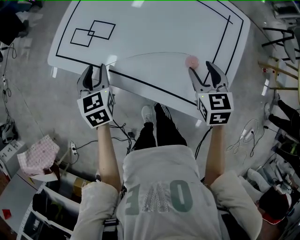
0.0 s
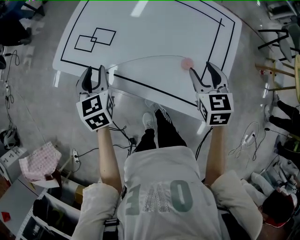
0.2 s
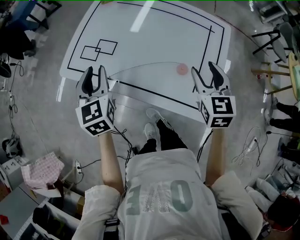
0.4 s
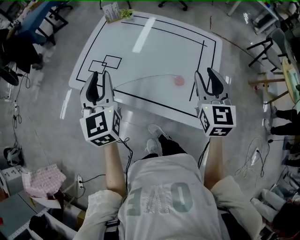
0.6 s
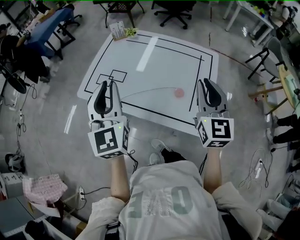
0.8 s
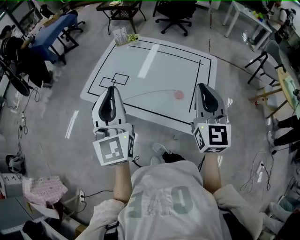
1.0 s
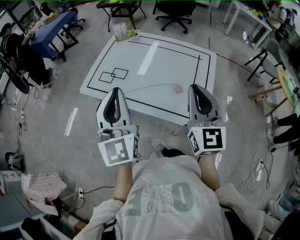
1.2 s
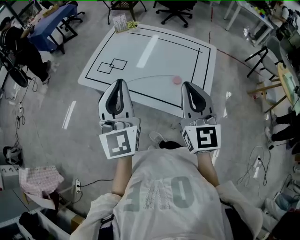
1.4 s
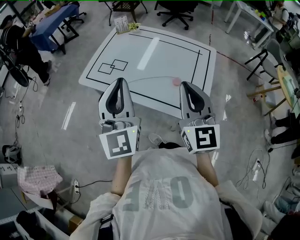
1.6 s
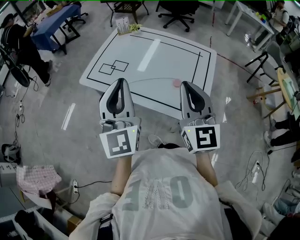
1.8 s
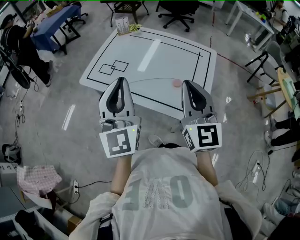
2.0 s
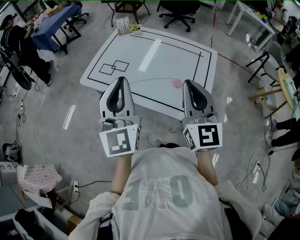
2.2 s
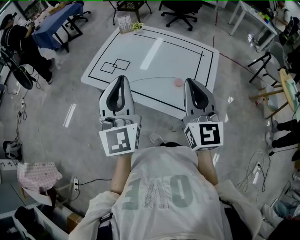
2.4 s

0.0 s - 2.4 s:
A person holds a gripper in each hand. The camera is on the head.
0.0 s - 1.2 s: The two grippers go some 35 cm upward and backward. The right gripper tips its fingers upward by roughly 40 degrees, and closes up. The left gripper points its fingers roughly 50 degrees further upward.
1.2 s - 2.4 s: The grippers make only small movements.

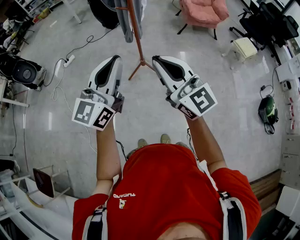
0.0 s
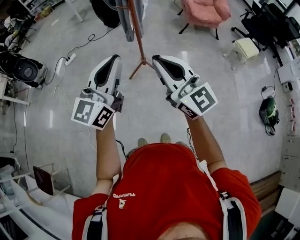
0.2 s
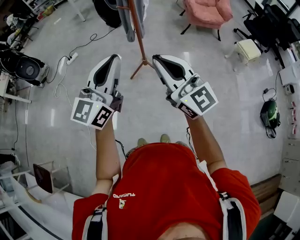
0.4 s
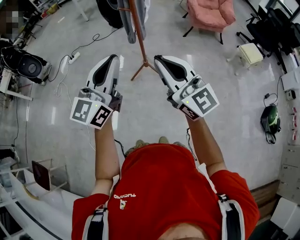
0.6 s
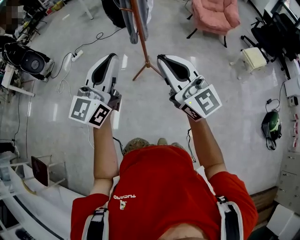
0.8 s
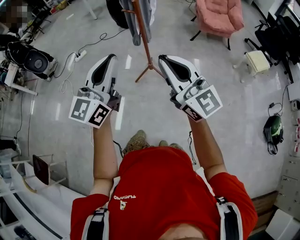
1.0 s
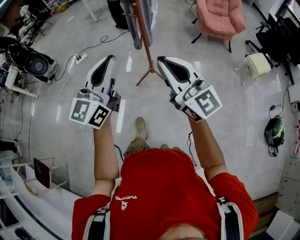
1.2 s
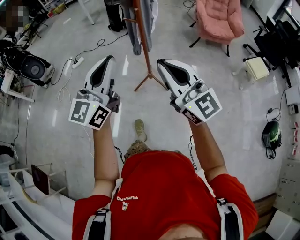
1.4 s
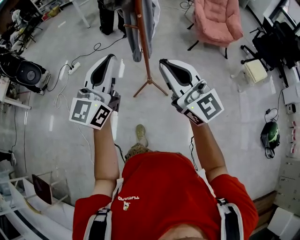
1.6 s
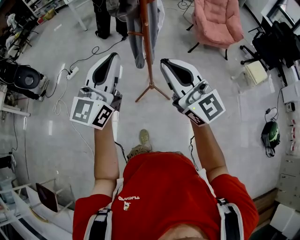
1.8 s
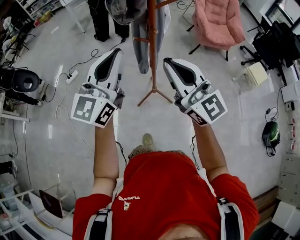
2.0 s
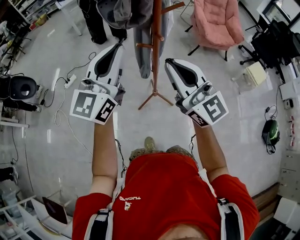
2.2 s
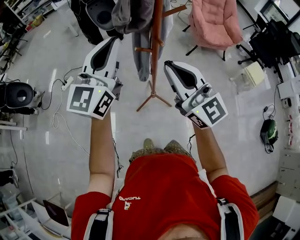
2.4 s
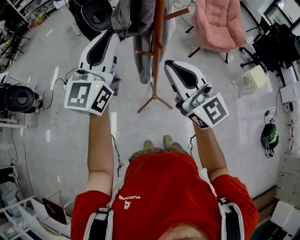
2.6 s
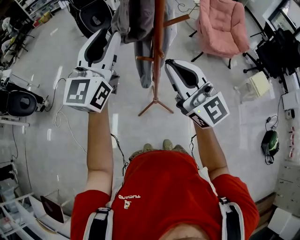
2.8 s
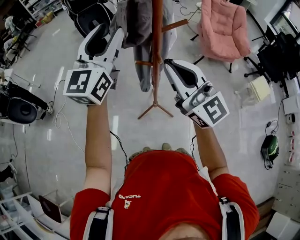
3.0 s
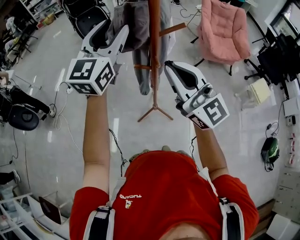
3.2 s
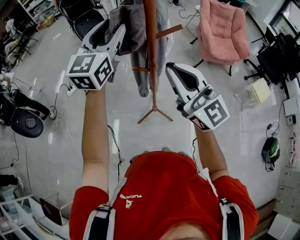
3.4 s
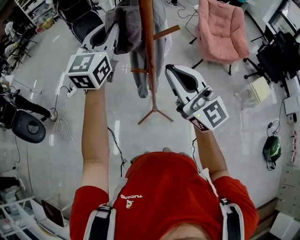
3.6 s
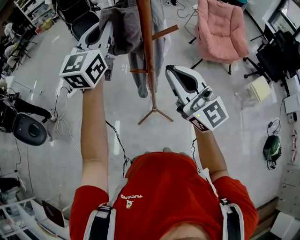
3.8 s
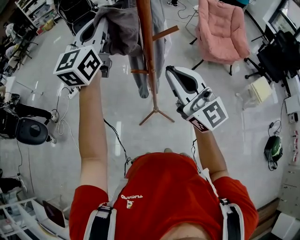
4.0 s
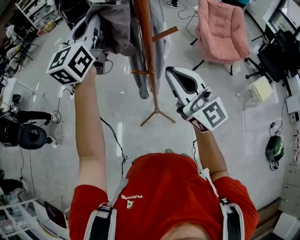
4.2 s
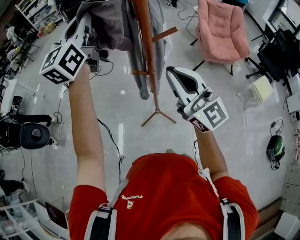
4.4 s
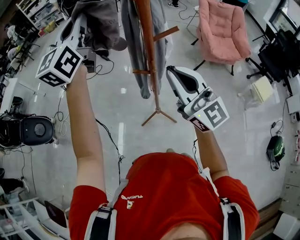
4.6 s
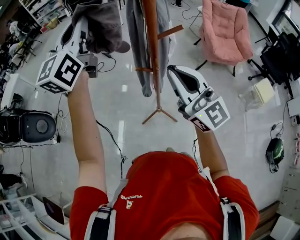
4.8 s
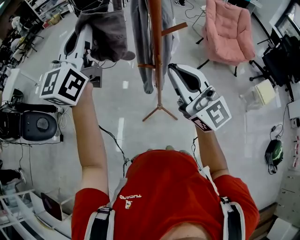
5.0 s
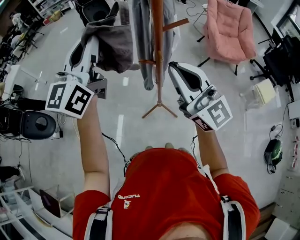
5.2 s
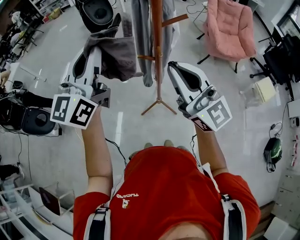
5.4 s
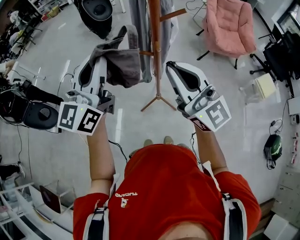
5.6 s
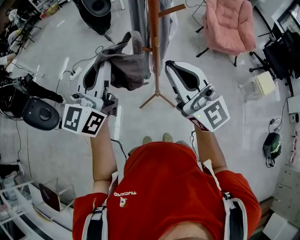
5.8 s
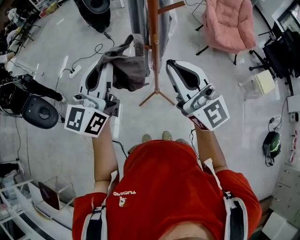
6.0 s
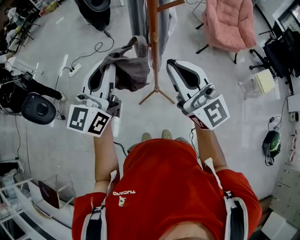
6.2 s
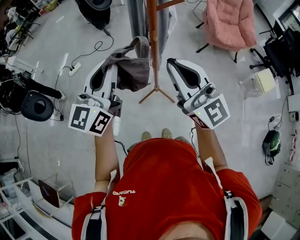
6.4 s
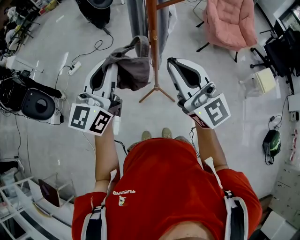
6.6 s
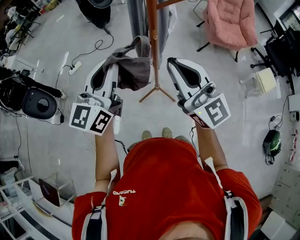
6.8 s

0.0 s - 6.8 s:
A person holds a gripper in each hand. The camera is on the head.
0.0 s - 1.4 s: The two grippers go about 10 cm forward.
1.4 s - 2.8 s: Both grippers travel together forward, approximately 30 cm. The left gripper opens up.
2.8 s - 4.0 s: The left gripper goes some 10 cm forward, and closes up.
4.0 s - 5.4 s: The left gripper is displaced backward and to the left by about 15 cm.
5.4 s - 6.8 s: The left gripper travels downward and backward by about 10 cm.

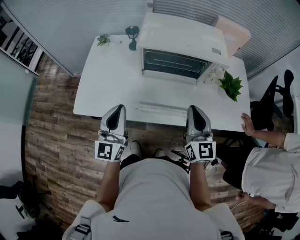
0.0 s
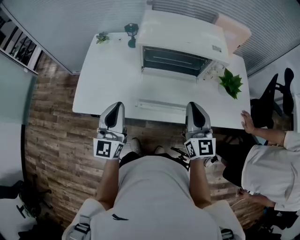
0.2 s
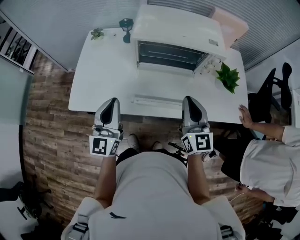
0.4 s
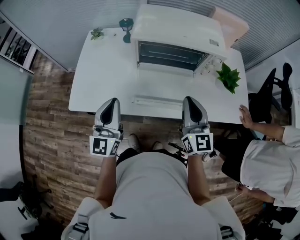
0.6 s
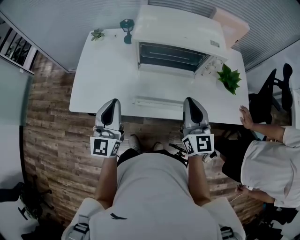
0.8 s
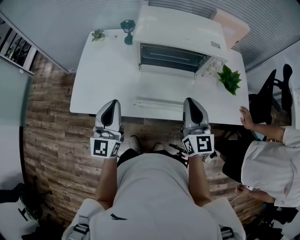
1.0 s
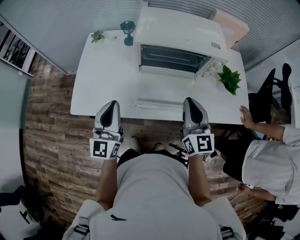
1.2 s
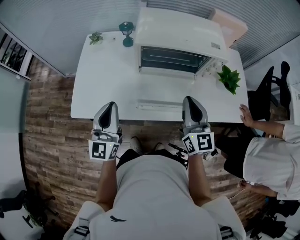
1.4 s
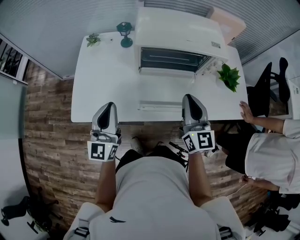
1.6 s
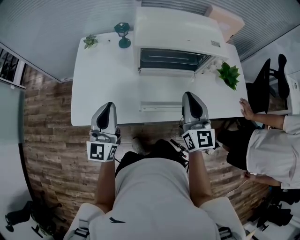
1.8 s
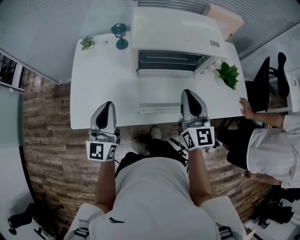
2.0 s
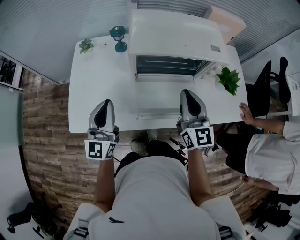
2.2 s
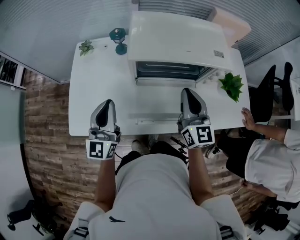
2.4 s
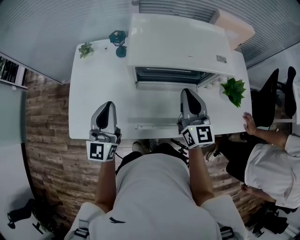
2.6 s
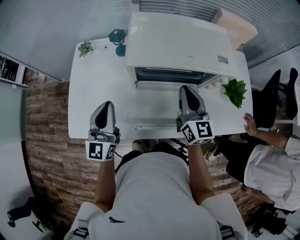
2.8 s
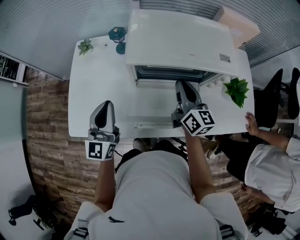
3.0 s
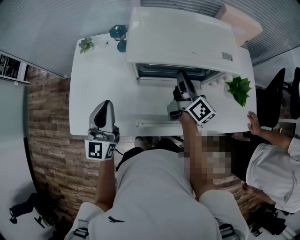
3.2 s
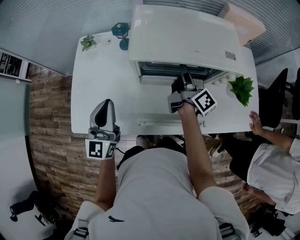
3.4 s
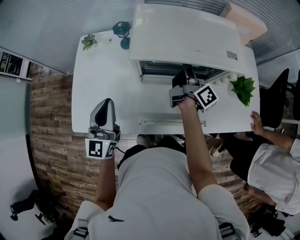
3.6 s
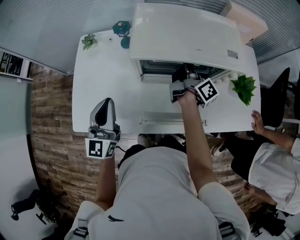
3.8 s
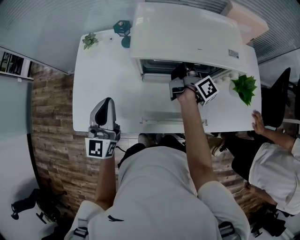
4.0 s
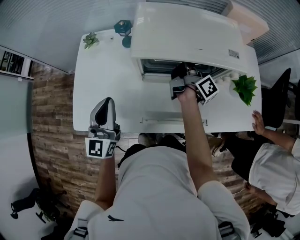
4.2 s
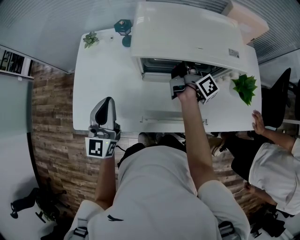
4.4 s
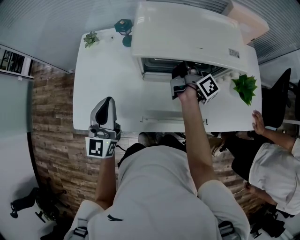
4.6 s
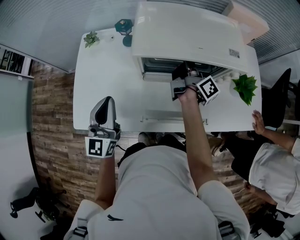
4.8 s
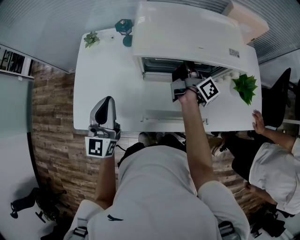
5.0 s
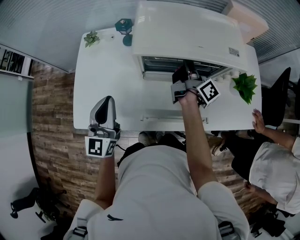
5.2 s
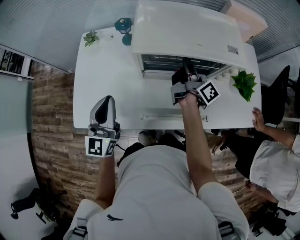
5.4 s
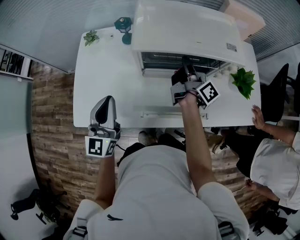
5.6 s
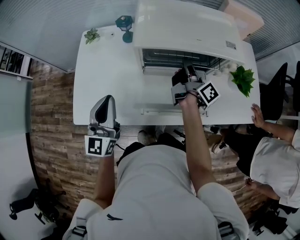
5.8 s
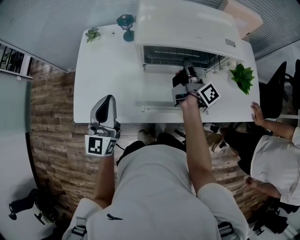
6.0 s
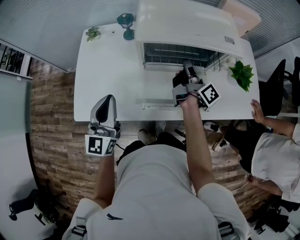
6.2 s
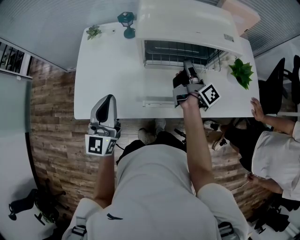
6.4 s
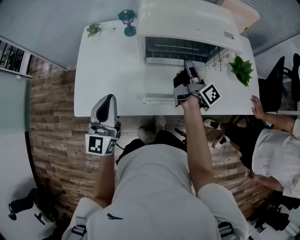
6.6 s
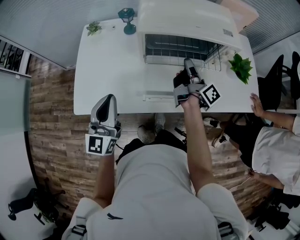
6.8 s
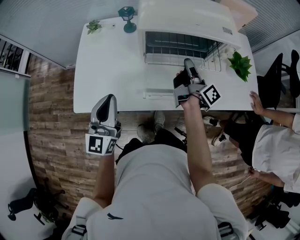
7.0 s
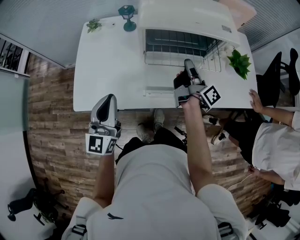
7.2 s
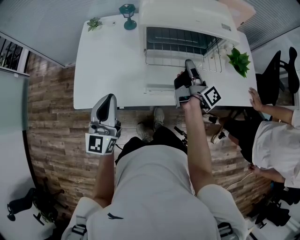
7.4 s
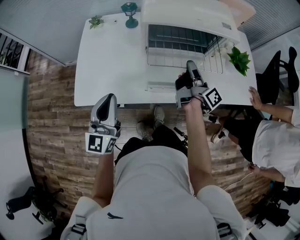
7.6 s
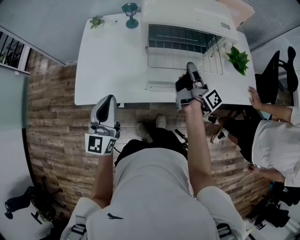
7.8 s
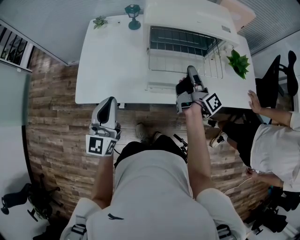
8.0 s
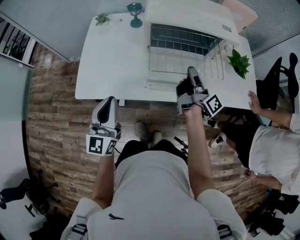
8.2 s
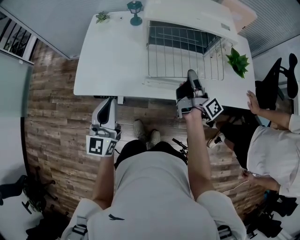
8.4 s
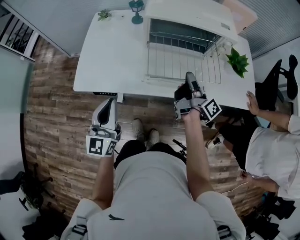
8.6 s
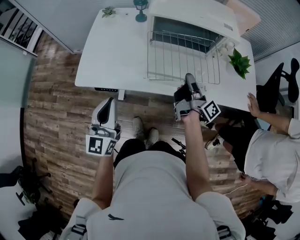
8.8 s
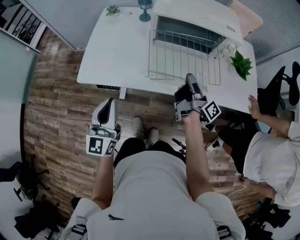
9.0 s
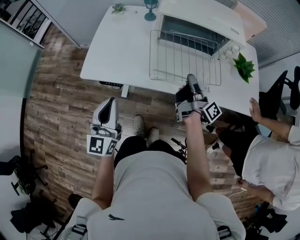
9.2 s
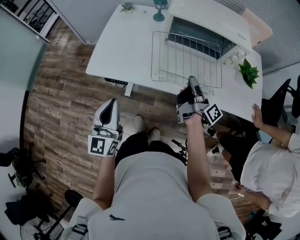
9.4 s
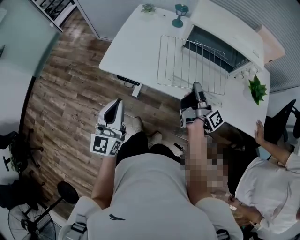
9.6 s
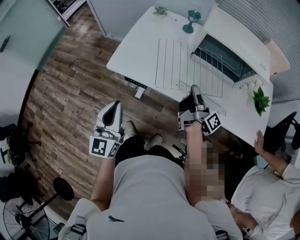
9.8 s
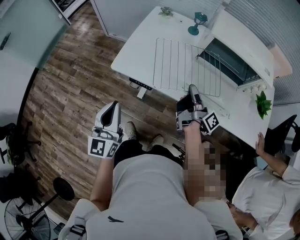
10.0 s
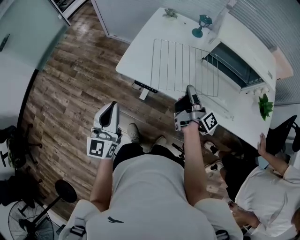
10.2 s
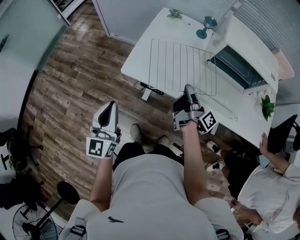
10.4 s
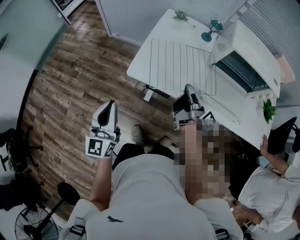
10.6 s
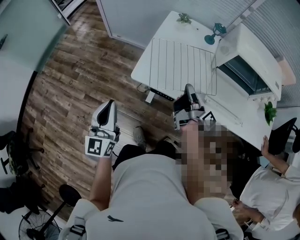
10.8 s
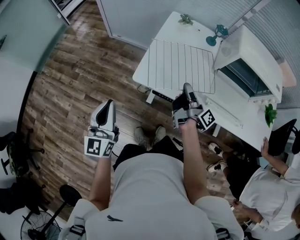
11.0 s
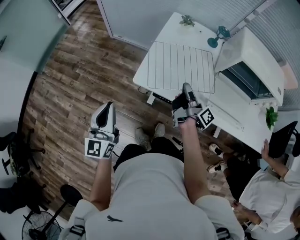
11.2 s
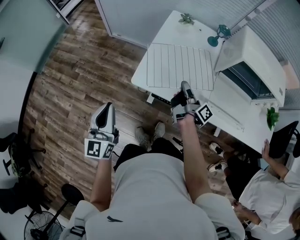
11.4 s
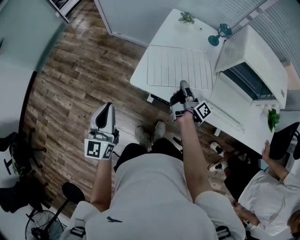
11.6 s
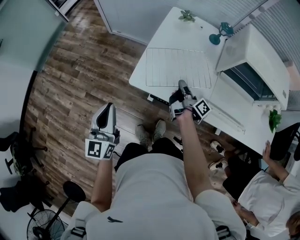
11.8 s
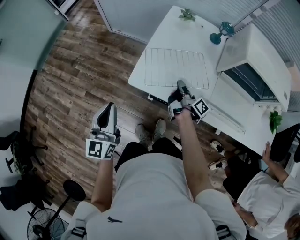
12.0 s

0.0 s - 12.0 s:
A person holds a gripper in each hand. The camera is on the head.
0.0 s - 1.6 s: The left gripper heads to the left, covering approximately 5 cm, while the right gripper ends up some 5 cm from where it was.
1.6 s - 3.0 s: The left gripper goes approximately 10 cm forward; the right gripper shifts some 15 cm forward, and swivels about 20 degrees.
3.0 s - 4.4 s: The right gripper travels forward by about 10 cm, and twists some 60 degrees clockwise, seen from behind.
4.4 s - 6.0 s: The right gripper travels backward by approximately 10 cm.
6.0 s - 7.6 s: The two grippers go about 10 cm backward.
7.6 s - 9.0 s: Both grippers travel together backward, roughly 10 cm.
9.0 s - 10.4 s: Both grippers move to the left, about 25 cm.
10.4 s - 12.0 s: The left gripper moves forward and to the left, approximately 10 cm, while the right gripper travels downward, forward and to the left by approximately 20 cm.

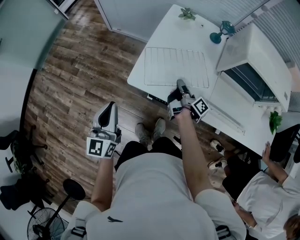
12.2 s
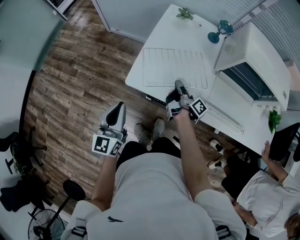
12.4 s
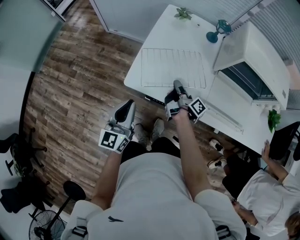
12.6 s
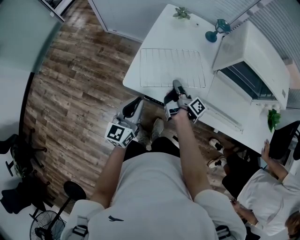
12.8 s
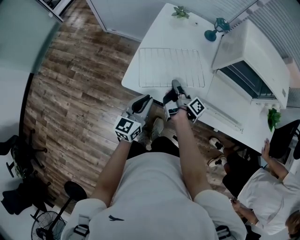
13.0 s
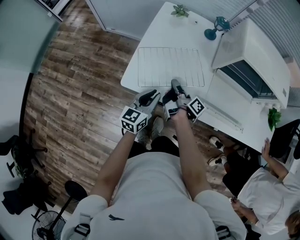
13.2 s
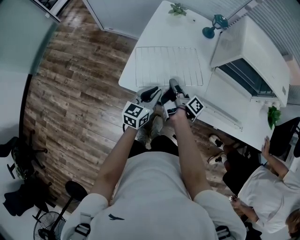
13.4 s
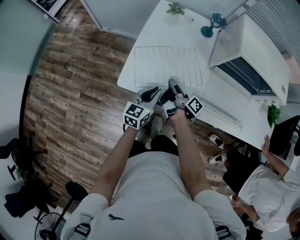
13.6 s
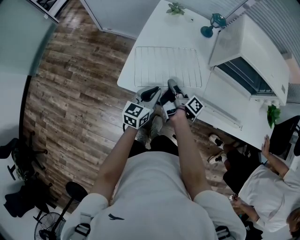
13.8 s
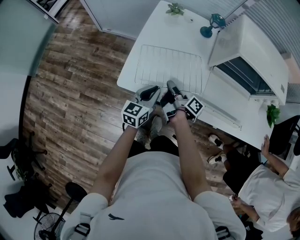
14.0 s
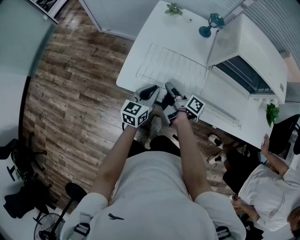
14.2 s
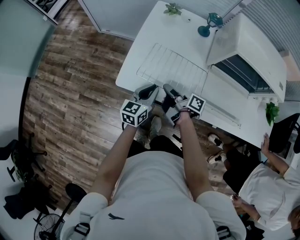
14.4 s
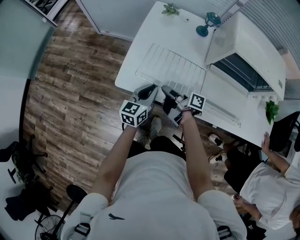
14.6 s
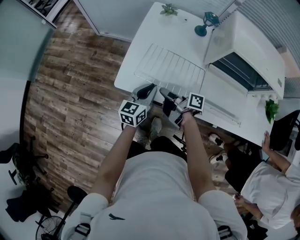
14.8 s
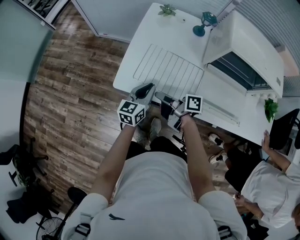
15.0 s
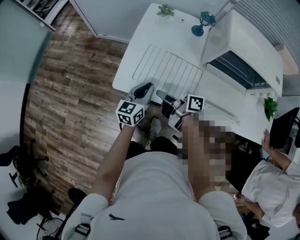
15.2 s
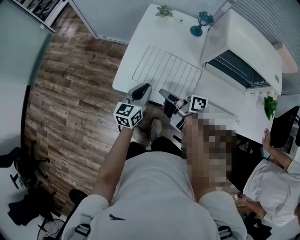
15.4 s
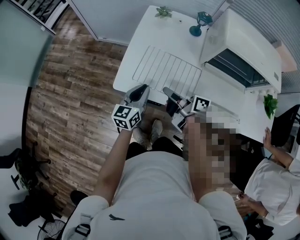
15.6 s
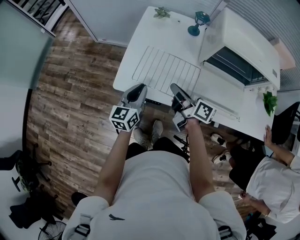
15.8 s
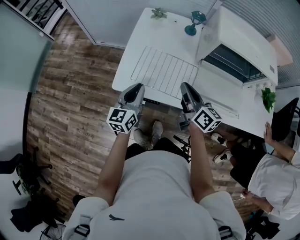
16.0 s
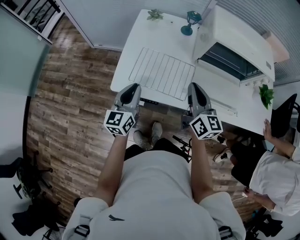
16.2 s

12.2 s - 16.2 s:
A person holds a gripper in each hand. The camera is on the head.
12.2 s - 13.6 s: The left gripper goes some 25 cm to the right, downward and forward, and swivels some 30 degrees.
13.6 s - 14.8 s: The right gripper is displaced backward by roughly 5 cm, and changes its angle by about 30 degrees.
14.8 s - 16.2 s: The left gripper travels upward by about 10 cm. Meanwhile the right gripper is displaced upward and to the right by about 20 cm, and twists about 60 degrees counterclockwise, seen from behind.
